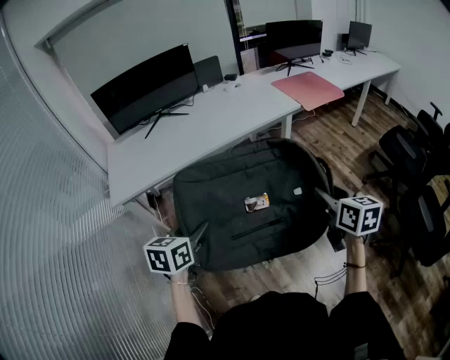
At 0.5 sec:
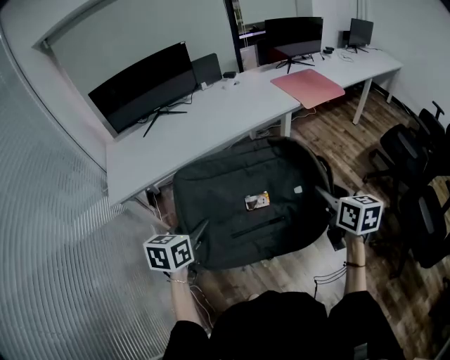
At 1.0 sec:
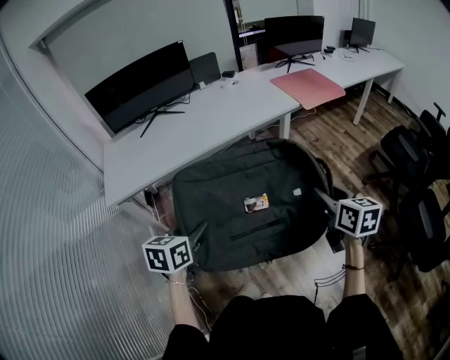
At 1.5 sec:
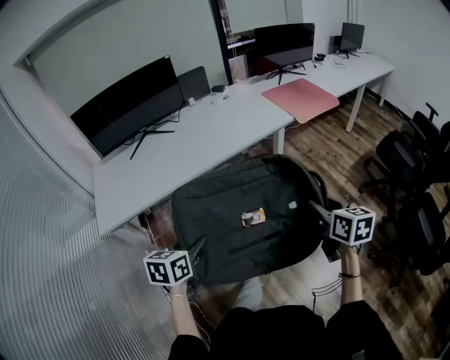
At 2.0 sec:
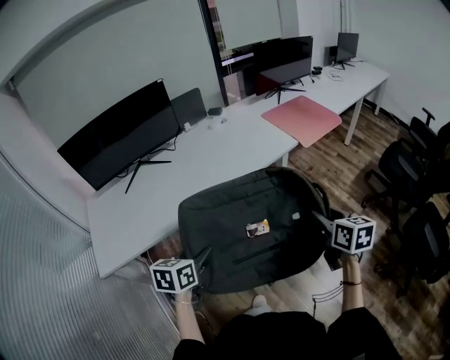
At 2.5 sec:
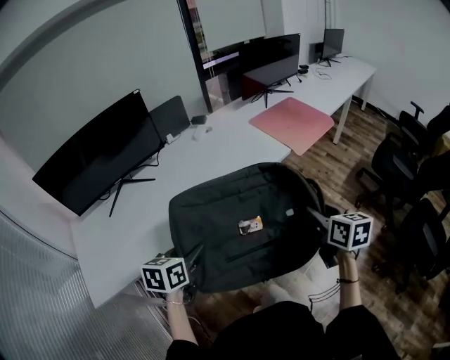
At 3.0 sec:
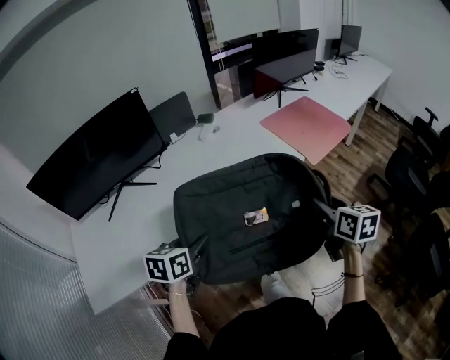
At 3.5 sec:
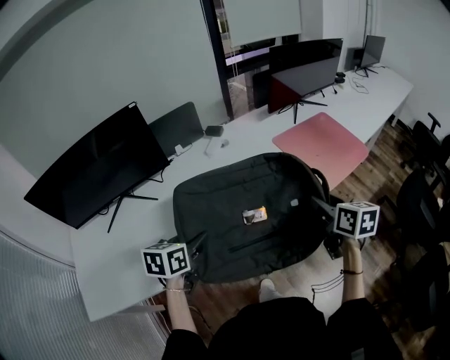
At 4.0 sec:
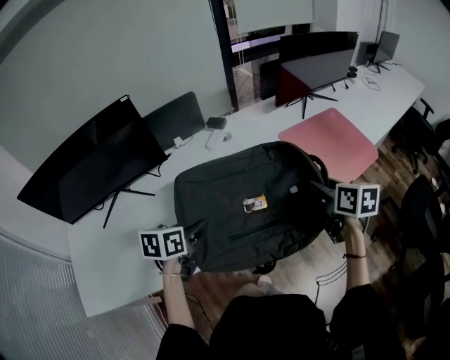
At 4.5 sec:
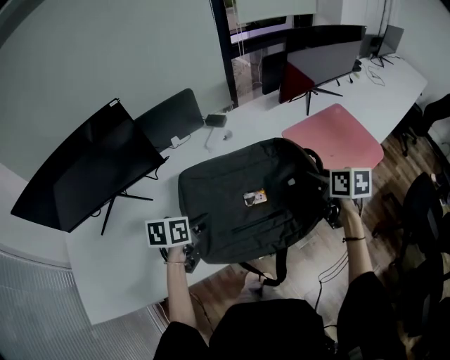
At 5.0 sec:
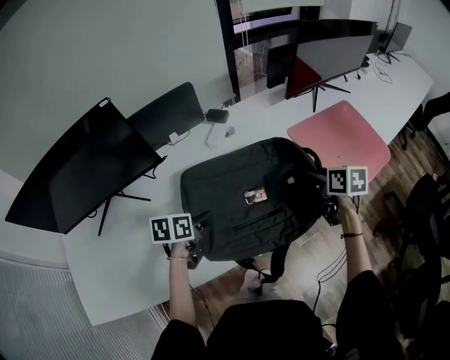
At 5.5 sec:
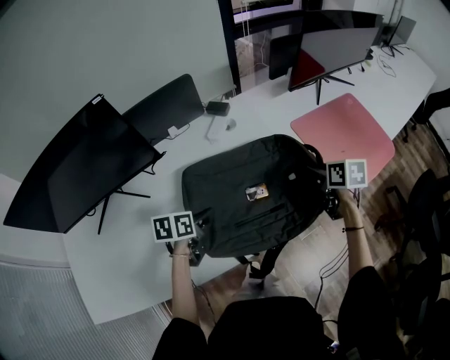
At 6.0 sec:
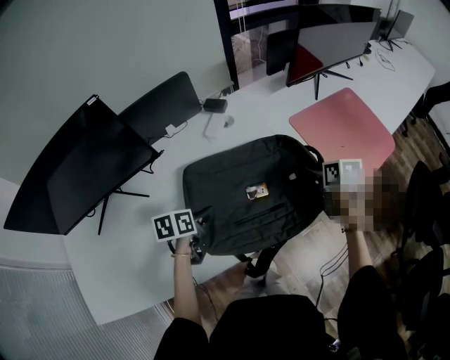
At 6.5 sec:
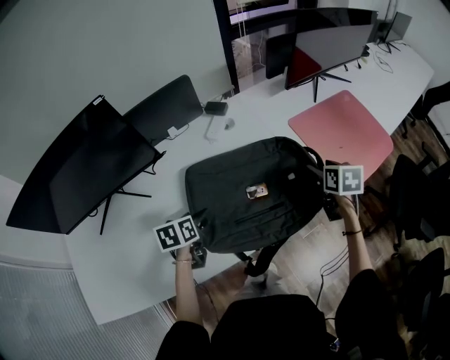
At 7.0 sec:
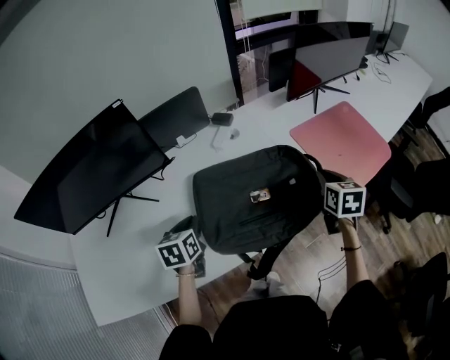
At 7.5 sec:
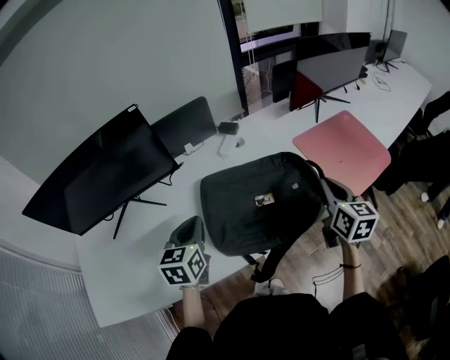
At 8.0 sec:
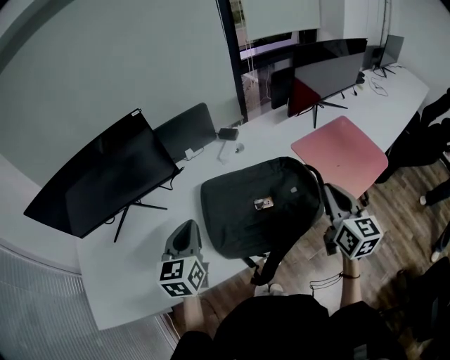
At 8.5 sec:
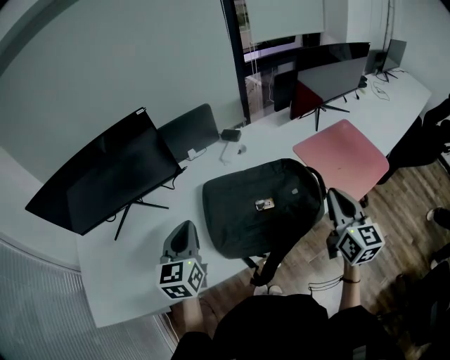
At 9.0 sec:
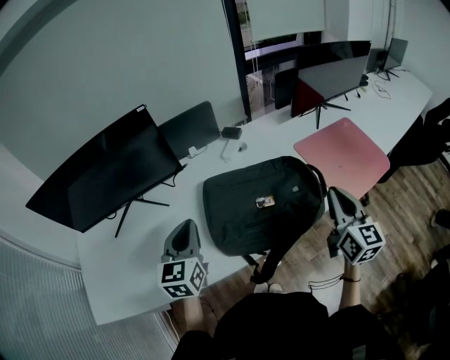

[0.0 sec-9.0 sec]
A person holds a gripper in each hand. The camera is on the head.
0.0 sec to 2.0 sec: The two grippers go some 25 cm forward.
2.0 sec to 4.5 sec: The pair of grippers is taken forward, approximately 50 cm.
4.5 sec to 7.0 sec: The right gripper travels downward and back again, about 10 cm each way, swivels roughly 20 degrees, and closes up. The left gripper travels to the left by approximately 5 cm, goes downward and returns, some 10 cm each way, changes its angle by approximately 20 degrees, and opens and closes again.
7.0 sec to 9.0 sec: Both grippers move upward and backward, roughly 15 cm. The right gripper tips its fingers upward by some 30 degrees, while the left gripper rotates roughly 30 degrees.

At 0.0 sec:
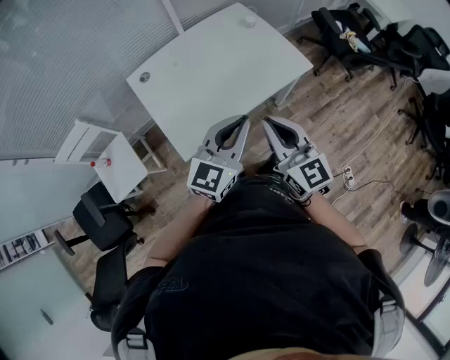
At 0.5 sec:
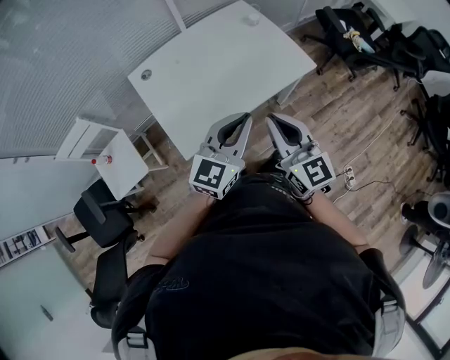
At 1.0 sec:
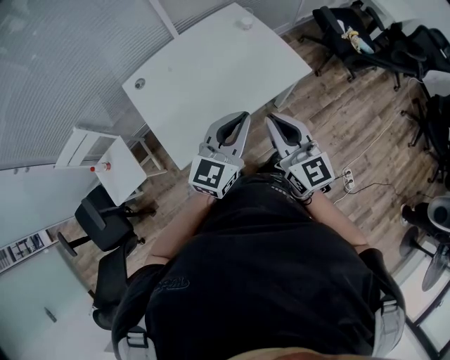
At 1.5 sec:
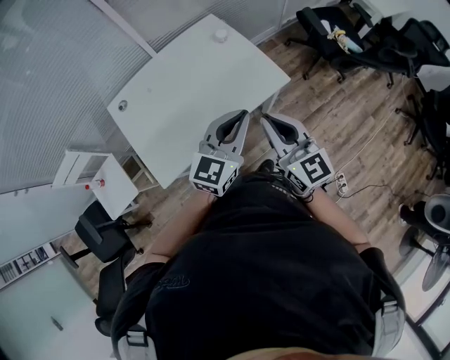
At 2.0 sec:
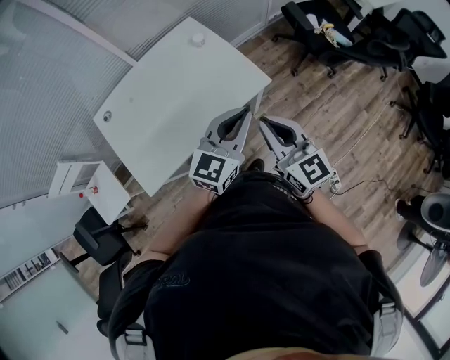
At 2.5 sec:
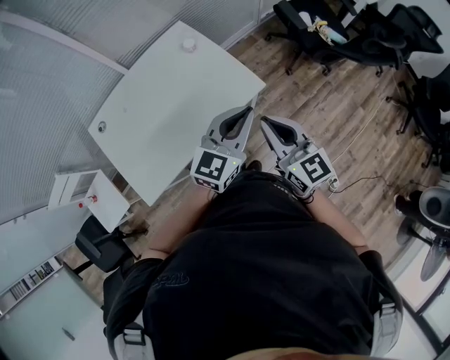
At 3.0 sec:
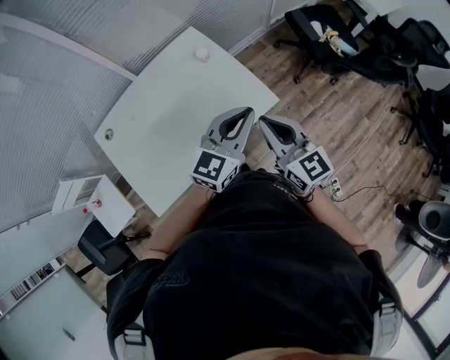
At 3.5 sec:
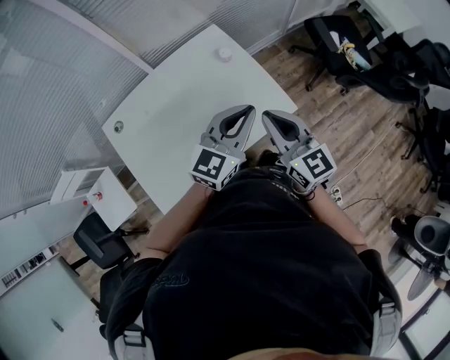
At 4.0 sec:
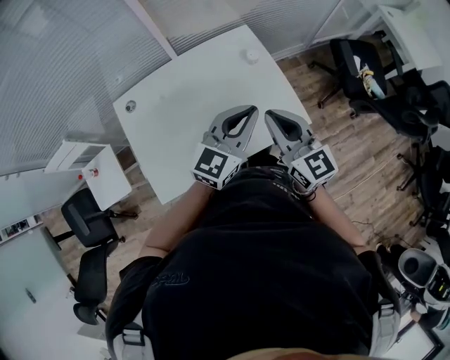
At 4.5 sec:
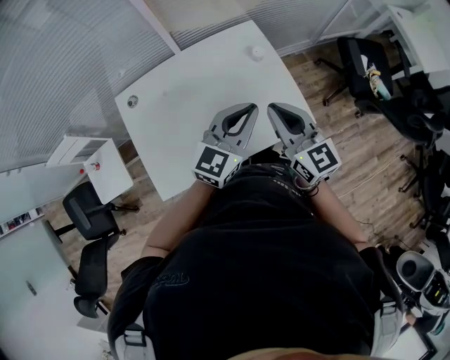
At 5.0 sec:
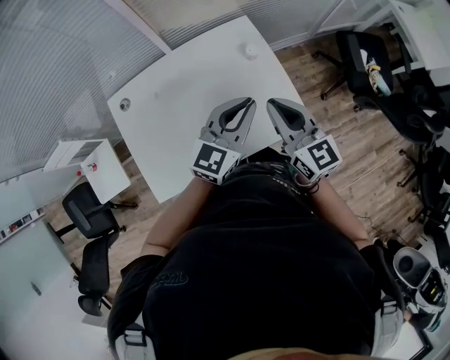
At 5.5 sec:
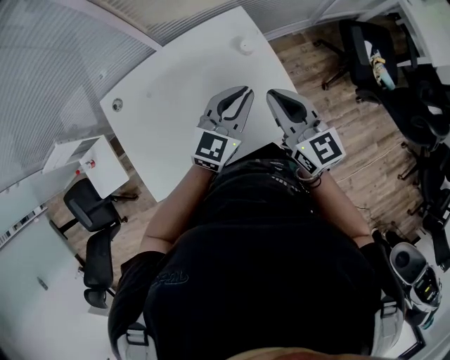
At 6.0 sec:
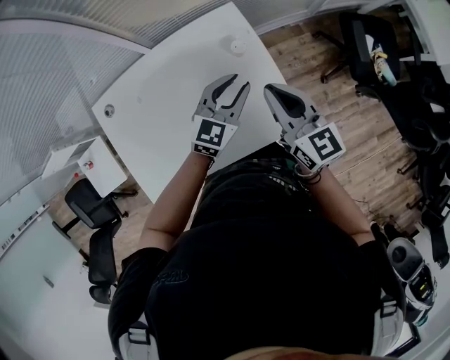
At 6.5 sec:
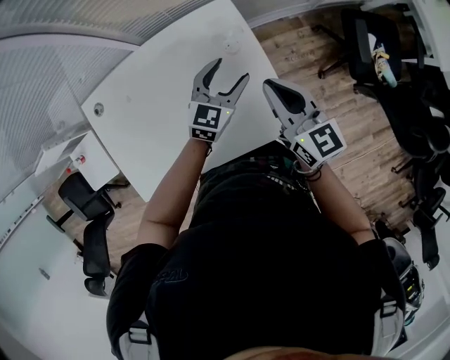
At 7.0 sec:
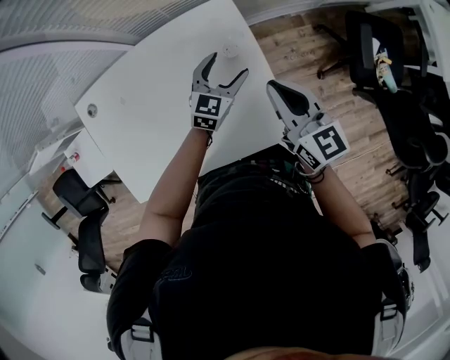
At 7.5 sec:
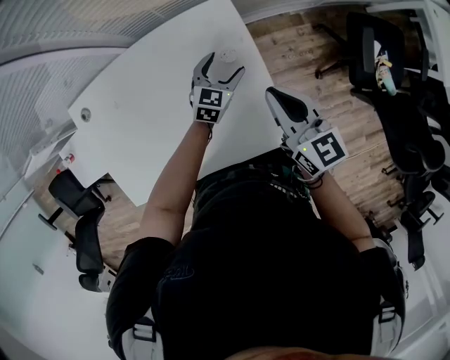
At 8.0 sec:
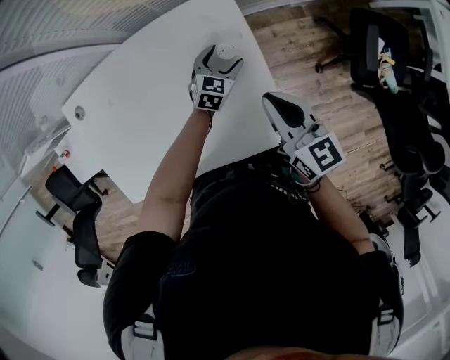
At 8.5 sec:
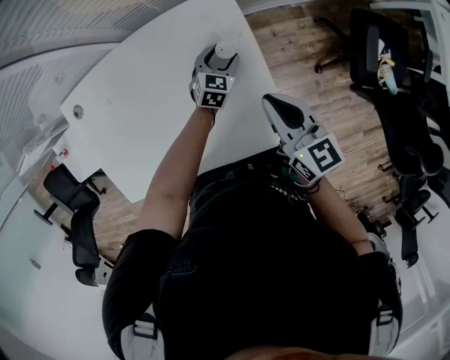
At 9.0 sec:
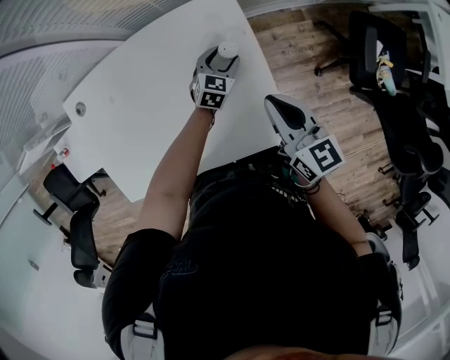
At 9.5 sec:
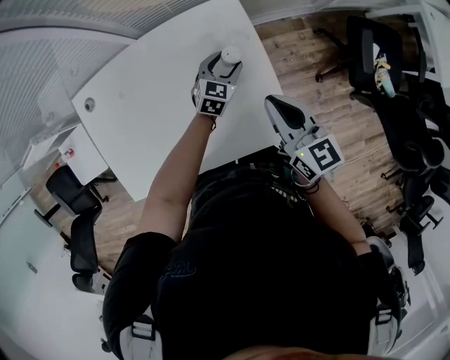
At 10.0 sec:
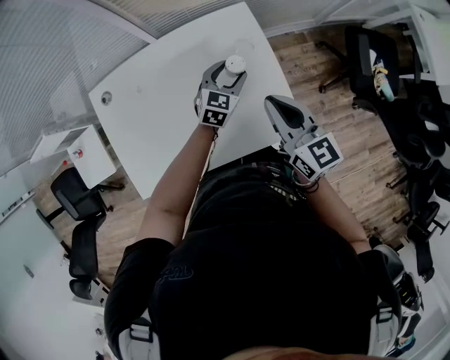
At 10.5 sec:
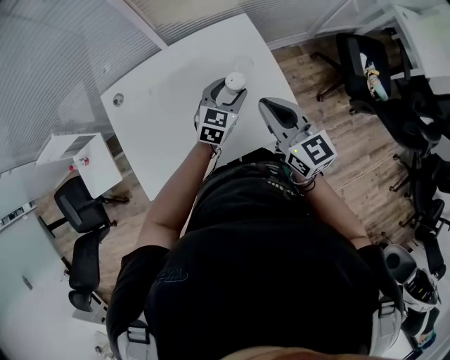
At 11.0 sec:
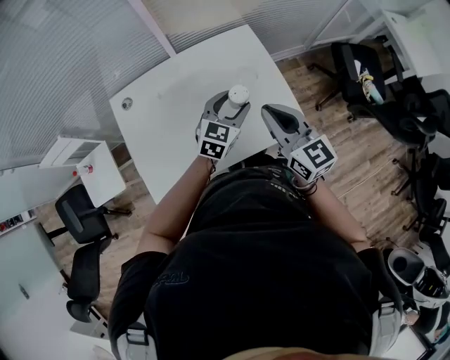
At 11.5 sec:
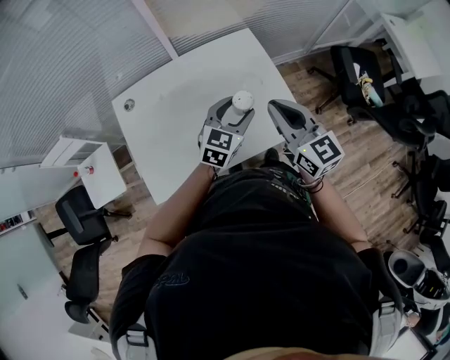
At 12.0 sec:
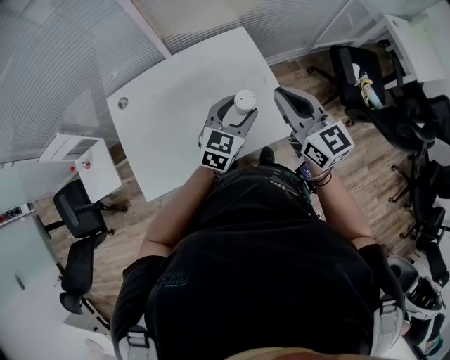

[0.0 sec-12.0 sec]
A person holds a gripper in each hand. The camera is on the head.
0.0 sec to 2.0 sec: The two grippers go approximately 25 cm to the right and forward.
2.0 sec to 4.0 sec: The right gripper travels forward and to the left by about 20 cm. Meanwhile the left gripper moves to the left and forward, roughly 20 cm.
4.0 sec to 6.0 sec: The right gripper is displaced forward and to the right by some 15 cm, while the left gripper heads forward and downward, covering about 20 cm.
6.0 sec to 8.0 sec: The right gripper goes some 10 cm downward and forward. The left gripper heads downward and forward, covering about 25 cm, changes its angle by some 20 degrees, and opens.
8.0 sec to 10.0 sec: The two grippers go approximately 15 cm upward, backward and to the left.
10.0 sec to 12.0 sec: The right gripper shifts approximately 10 cm upward and backward, while the left gripper goes about 25 cm backward and upward.

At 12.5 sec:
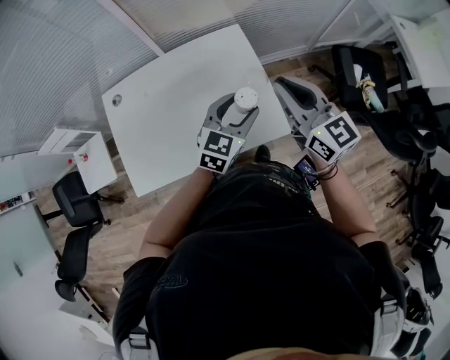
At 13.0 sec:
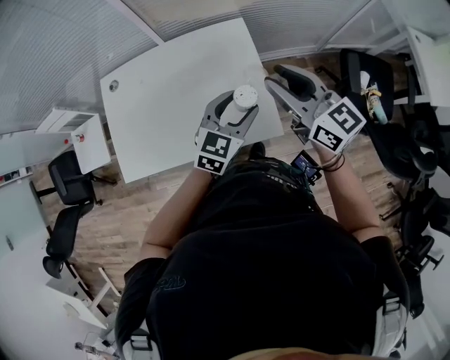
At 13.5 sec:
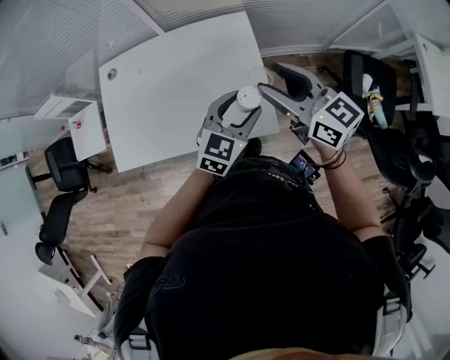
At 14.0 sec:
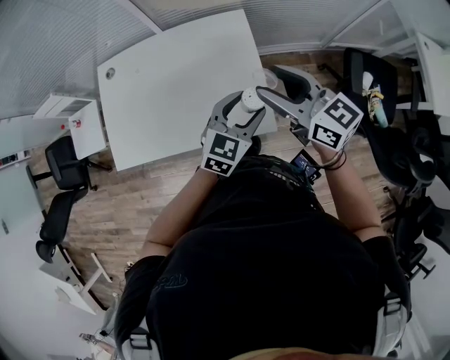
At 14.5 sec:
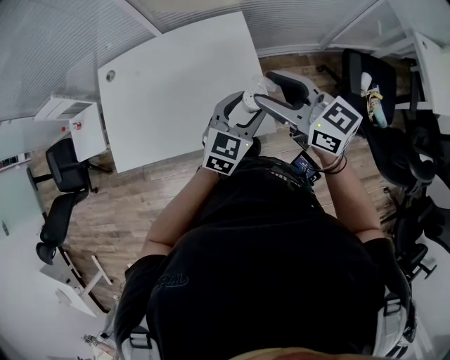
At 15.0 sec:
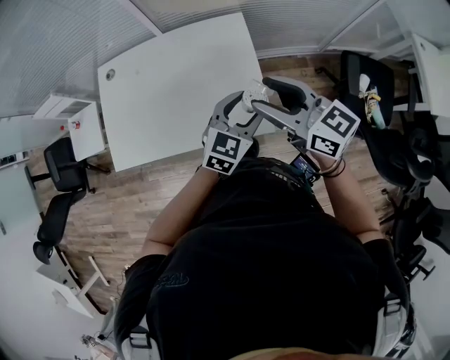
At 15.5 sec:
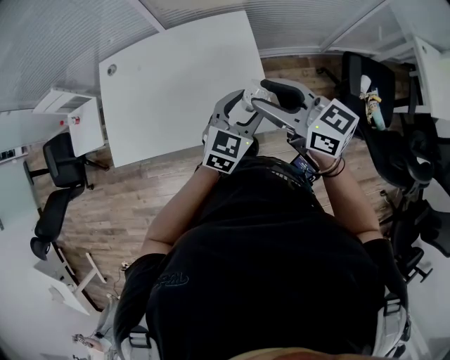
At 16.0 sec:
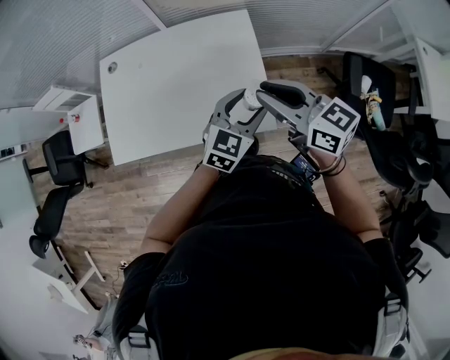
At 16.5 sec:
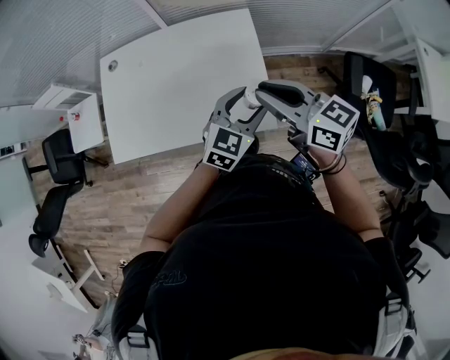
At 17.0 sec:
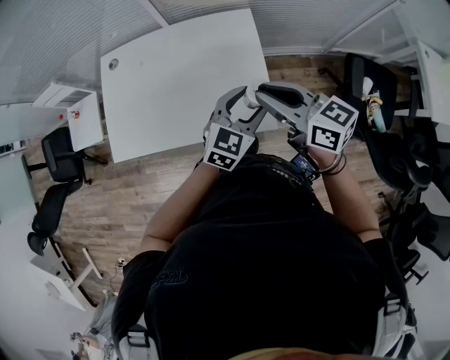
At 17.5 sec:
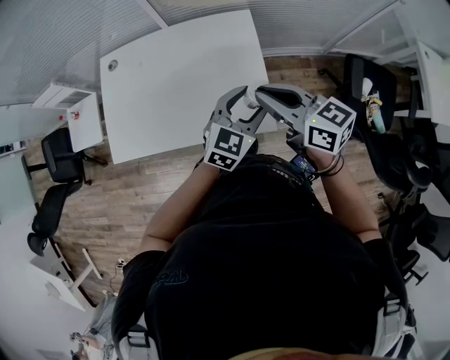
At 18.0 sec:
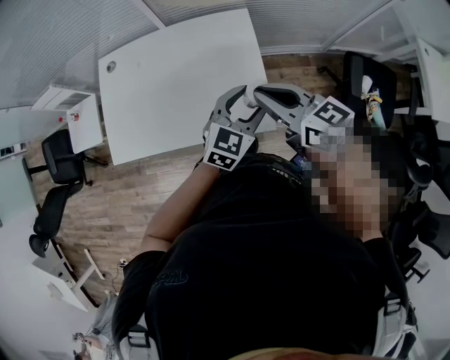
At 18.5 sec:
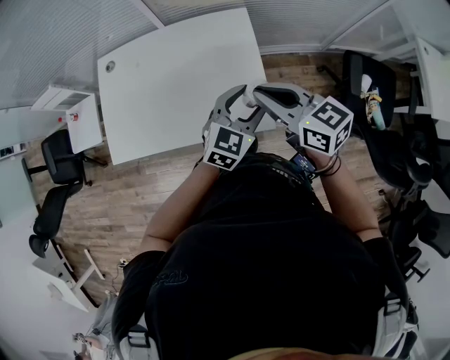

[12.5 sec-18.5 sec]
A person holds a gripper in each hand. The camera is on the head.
12.5 sec to 14.5 sec: The right gripper swivels roughly 30 degrees, and opens. Meanwhile the left gripper shifts roughly 10 cm to the right.
14.5 sec to 16.5 sec: The right gripper closes.
16.5 sec to 18.5 sec: The grippers move only a little.
